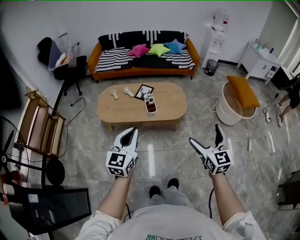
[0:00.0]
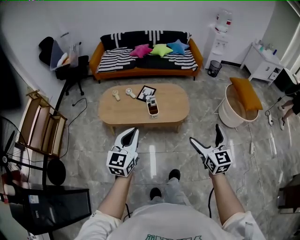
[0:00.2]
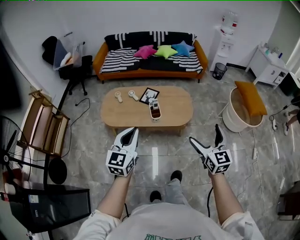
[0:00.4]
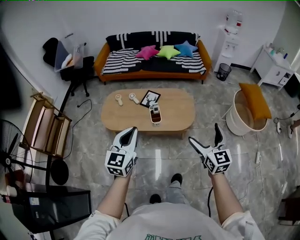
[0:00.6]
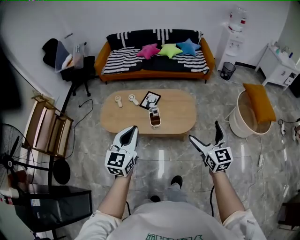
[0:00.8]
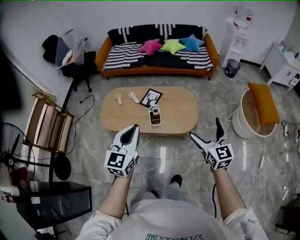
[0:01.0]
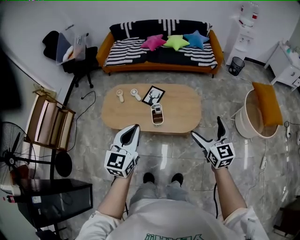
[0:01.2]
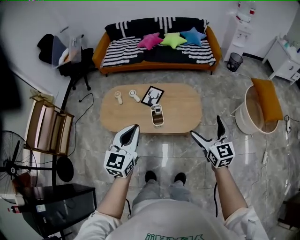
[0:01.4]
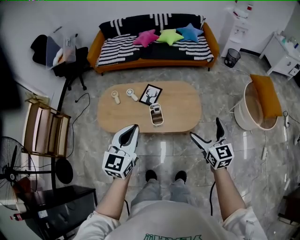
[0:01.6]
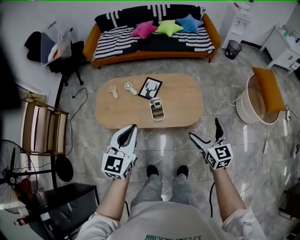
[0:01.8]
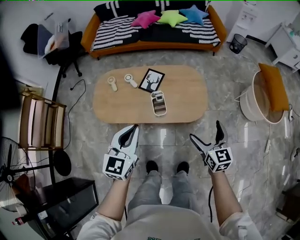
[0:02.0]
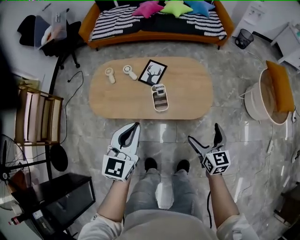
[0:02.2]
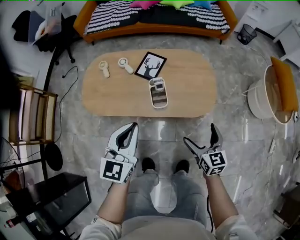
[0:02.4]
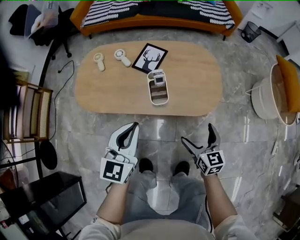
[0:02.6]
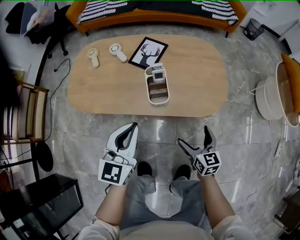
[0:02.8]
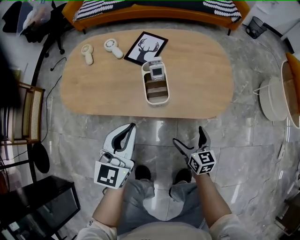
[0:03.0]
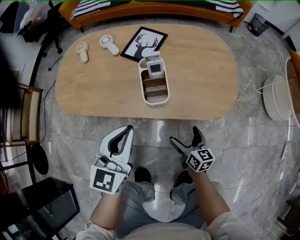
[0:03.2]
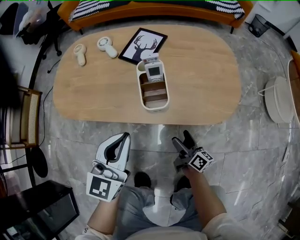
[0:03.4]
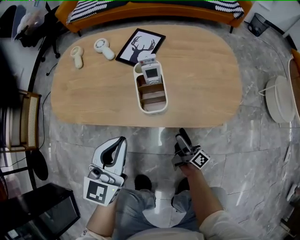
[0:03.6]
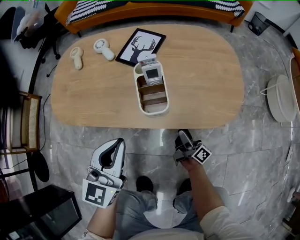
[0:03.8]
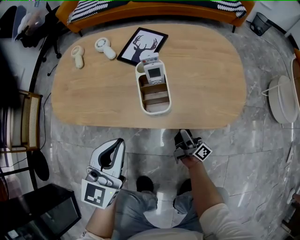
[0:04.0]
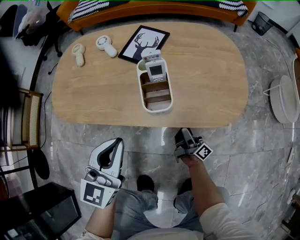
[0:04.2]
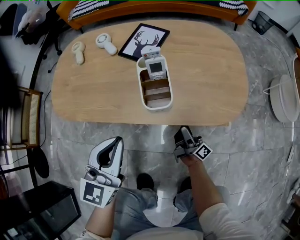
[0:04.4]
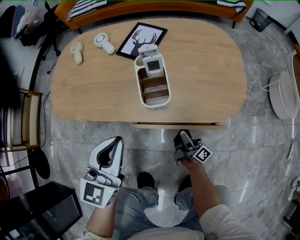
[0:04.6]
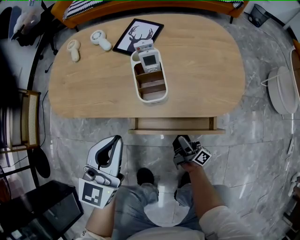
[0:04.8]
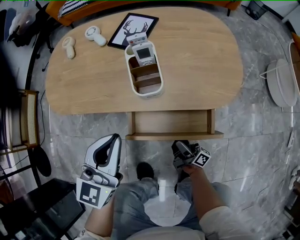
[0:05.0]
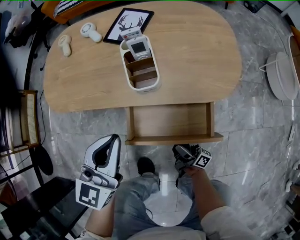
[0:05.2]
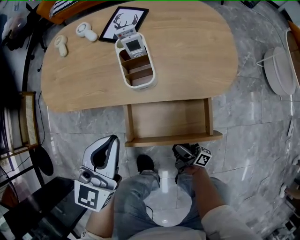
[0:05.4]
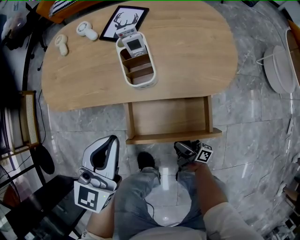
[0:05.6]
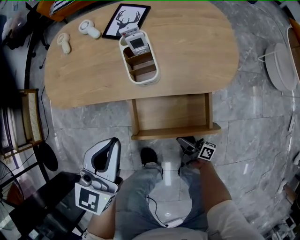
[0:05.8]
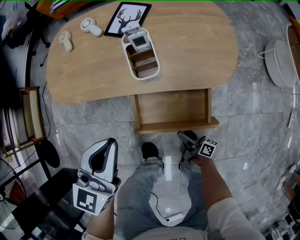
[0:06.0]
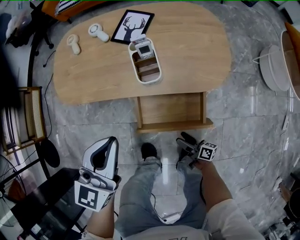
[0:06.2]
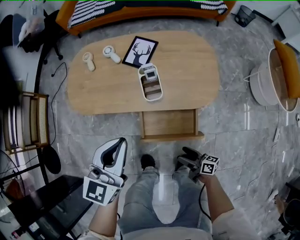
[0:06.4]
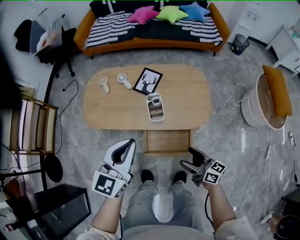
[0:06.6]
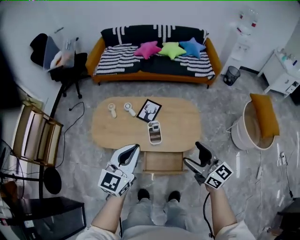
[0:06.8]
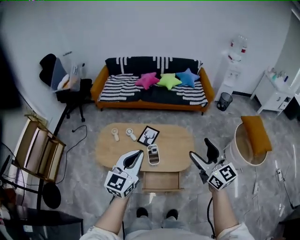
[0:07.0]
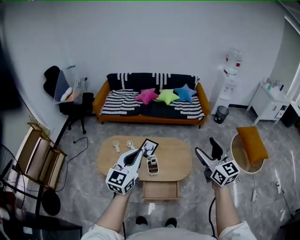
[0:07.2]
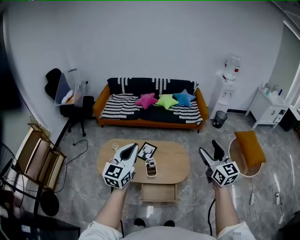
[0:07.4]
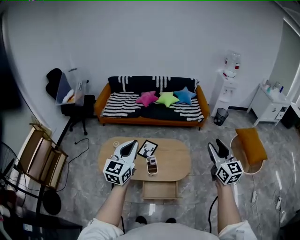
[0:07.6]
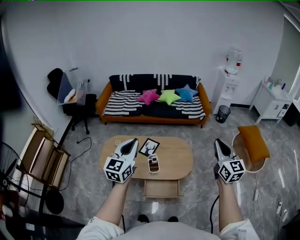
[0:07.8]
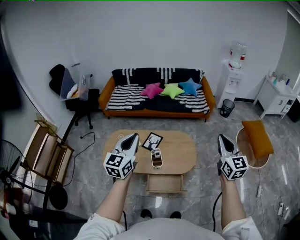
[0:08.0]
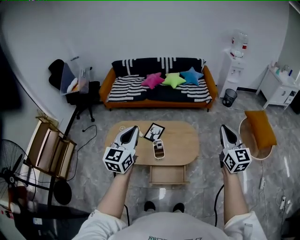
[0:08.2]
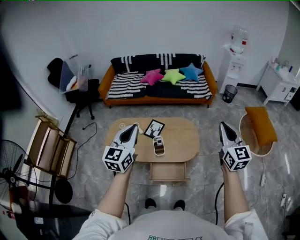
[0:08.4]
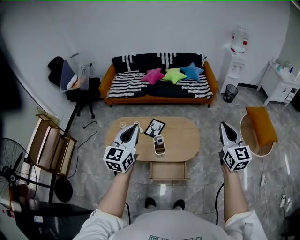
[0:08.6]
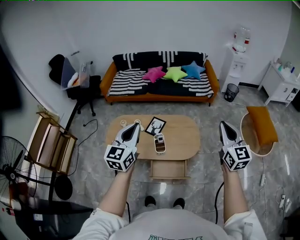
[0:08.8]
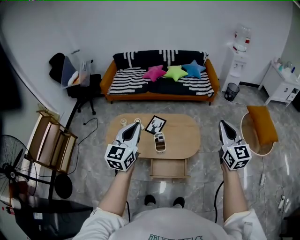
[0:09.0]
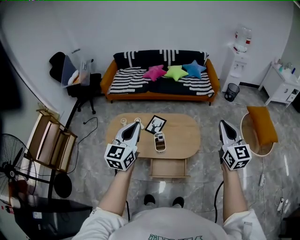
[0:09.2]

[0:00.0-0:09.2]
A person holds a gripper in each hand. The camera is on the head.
0:00.0 to 0:01.6: Both grippers move forward, approximately 25 cm.
0:01.6 to 0:03.0: The two grippers go some 50 cm downward. The right gripper rotates roughly 20 degrees.
0:03.0 to 0:04.6: The right gripper shifts some 10 cm downward, and tilts its fingers roughly 40 degrees upward; the left gripper moves approximately 5 cm.
0:04.6 to 0:06.2: The left gripper travels upward by roughly 10 cm; the right gripper shifts roughly 20 cm backward, and rotates roughly 40 degrees.
0:06.2 to 0:07.6: The left gripper is displaced upward by roughly 50 cm. Meanwhile the right gripper heads upward, covering some 80 cm, and rotates around the line of its fingers by about 80 degrees, counterclockwise from behind.
0:07.6 to 0:09.2: There are only small adjustments of the grippers.

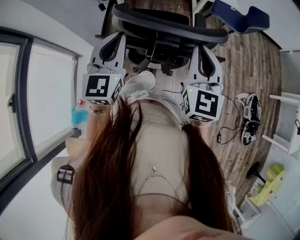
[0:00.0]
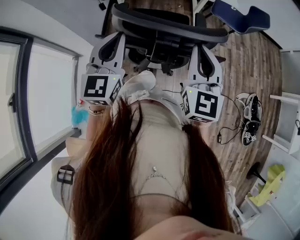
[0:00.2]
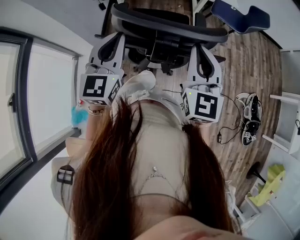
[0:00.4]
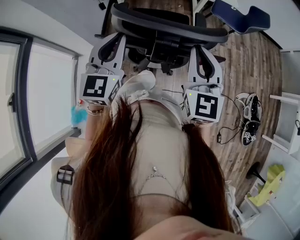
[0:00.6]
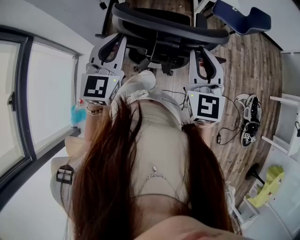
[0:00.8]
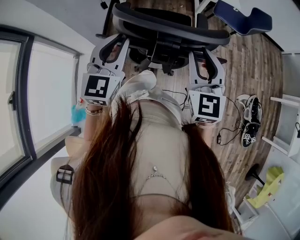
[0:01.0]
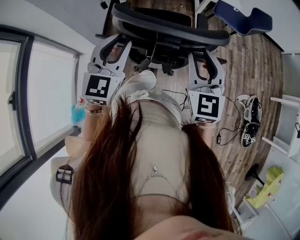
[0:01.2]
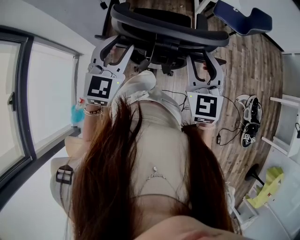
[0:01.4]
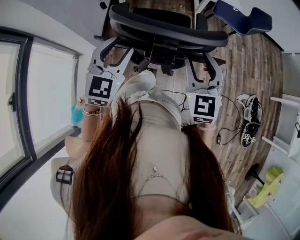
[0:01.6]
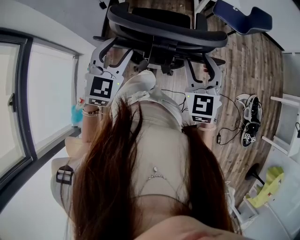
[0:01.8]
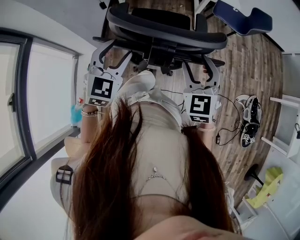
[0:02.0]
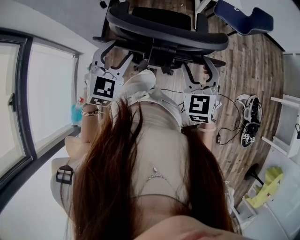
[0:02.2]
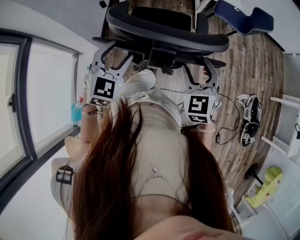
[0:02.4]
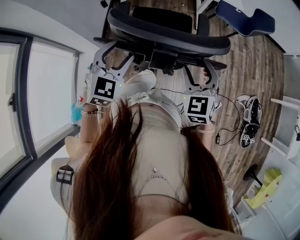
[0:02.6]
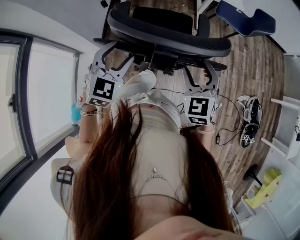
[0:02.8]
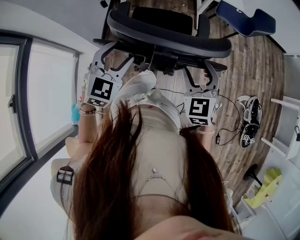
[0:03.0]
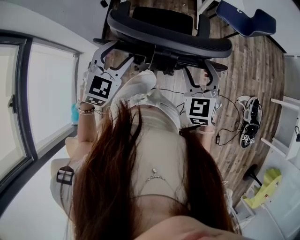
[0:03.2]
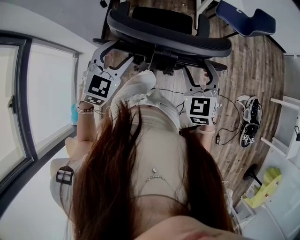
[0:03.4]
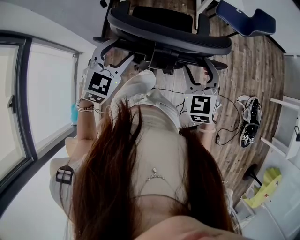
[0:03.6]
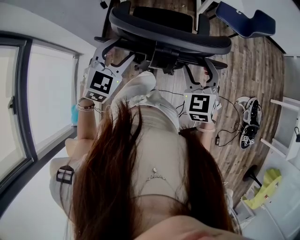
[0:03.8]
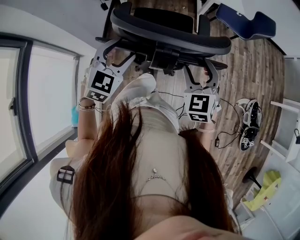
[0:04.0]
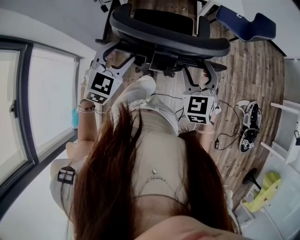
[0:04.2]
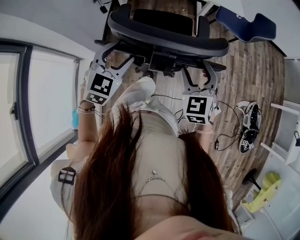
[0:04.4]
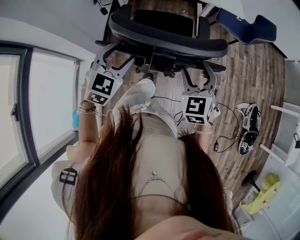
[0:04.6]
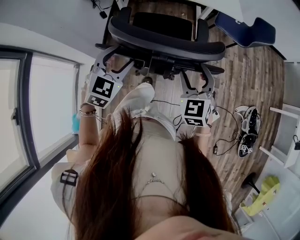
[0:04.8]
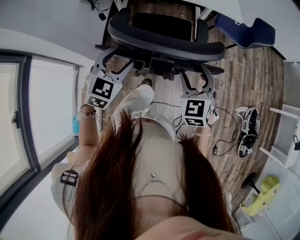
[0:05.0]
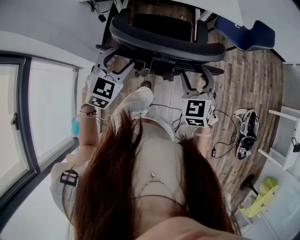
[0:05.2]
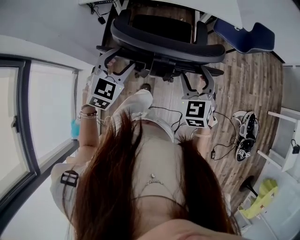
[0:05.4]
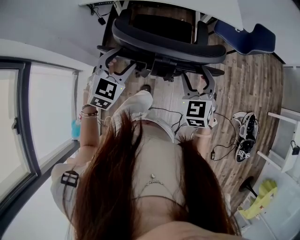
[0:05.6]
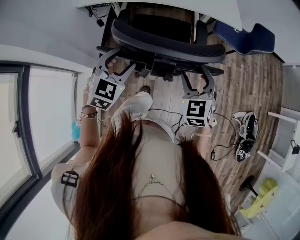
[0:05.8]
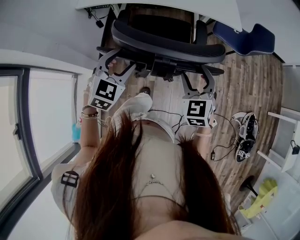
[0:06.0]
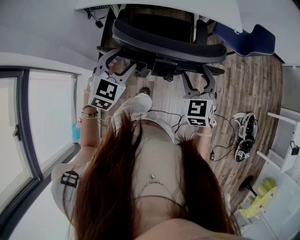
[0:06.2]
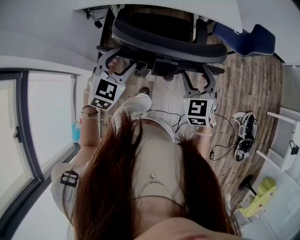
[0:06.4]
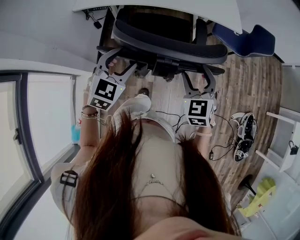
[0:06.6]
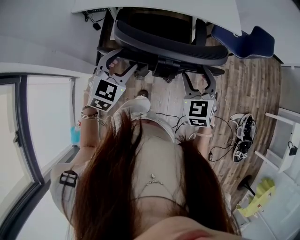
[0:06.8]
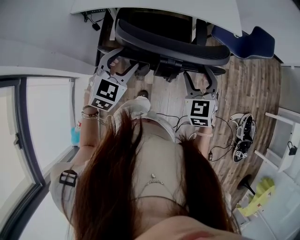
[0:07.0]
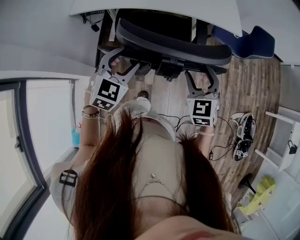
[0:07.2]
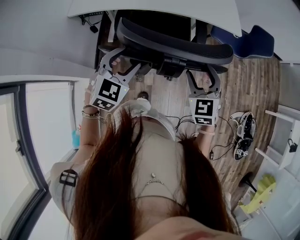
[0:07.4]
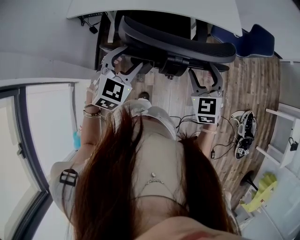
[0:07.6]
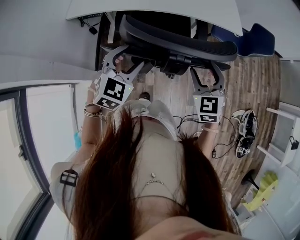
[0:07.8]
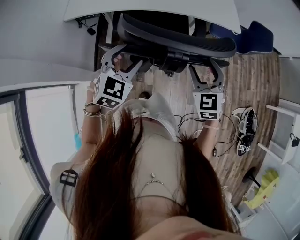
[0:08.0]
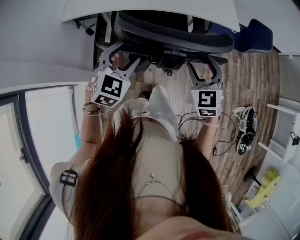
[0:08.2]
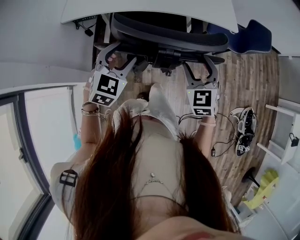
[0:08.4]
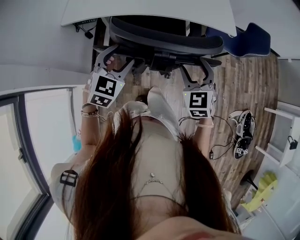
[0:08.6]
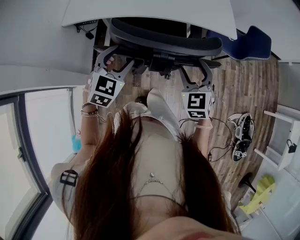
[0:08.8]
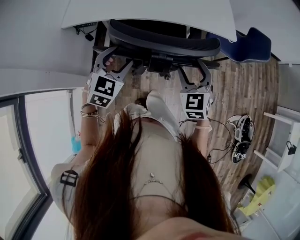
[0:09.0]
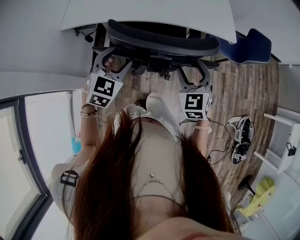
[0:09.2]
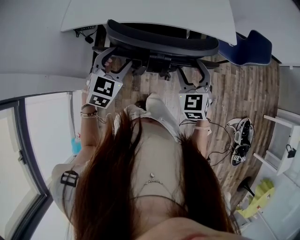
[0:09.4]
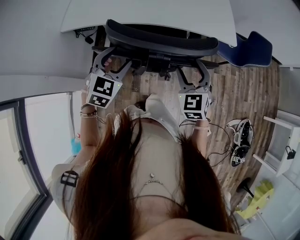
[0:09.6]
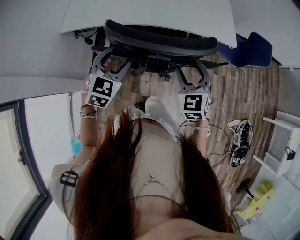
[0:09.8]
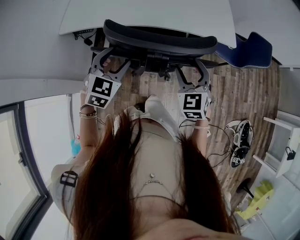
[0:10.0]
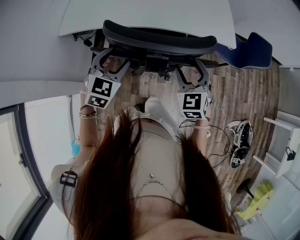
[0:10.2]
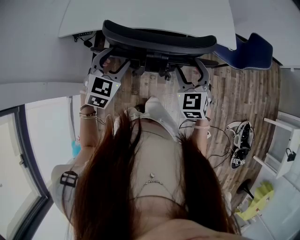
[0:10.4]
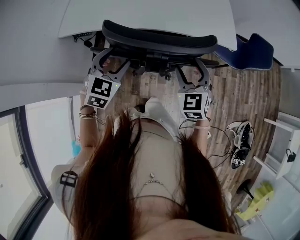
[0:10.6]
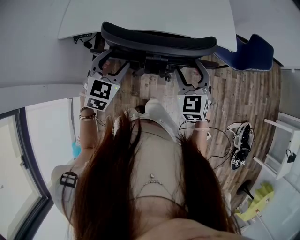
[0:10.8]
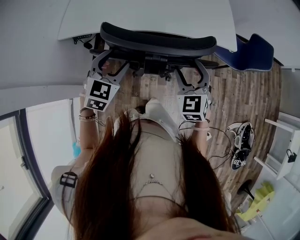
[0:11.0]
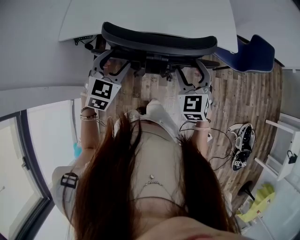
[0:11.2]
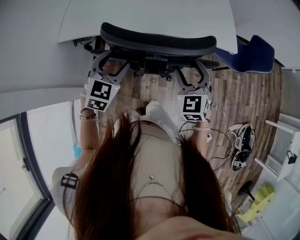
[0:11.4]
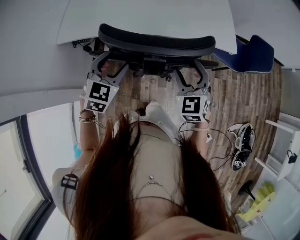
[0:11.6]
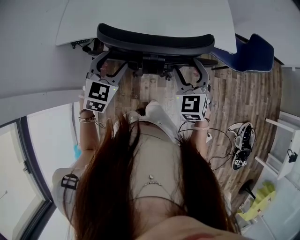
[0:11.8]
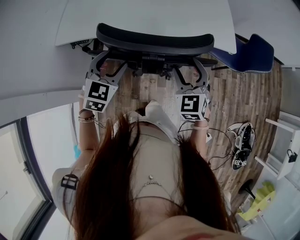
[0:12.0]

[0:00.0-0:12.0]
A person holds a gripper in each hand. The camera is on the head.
0:00.0 to 0:01.6: The left gripper opens. The right gripper moves downward, roughly 5 cm, and opens its fingers.
0:01.6 to 0:03.0: The right gripper heads downward, covering roughly 5 cm.
0:03.0 to 0:04.4: The grippers stay close to where they were, moving slightly.
0:04.4 to 0:06.0: The grippers both shift forward by some 15 cm.
0:06.0 to 0:07.6: Both grippers travel together forward, some 10 cm.
0:07.6 to 0:09.0: The grippers both shift forward by some 5 cm.
0:09.0 to 0:10.4: Both grippers move forward, approximately 5 cm.
0:10.4 to 0:12.0: The grippers move only a little.

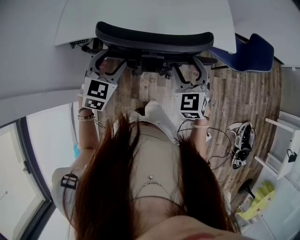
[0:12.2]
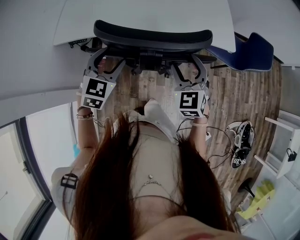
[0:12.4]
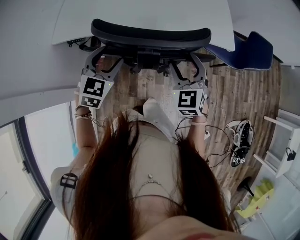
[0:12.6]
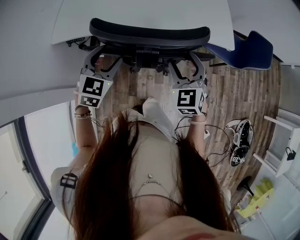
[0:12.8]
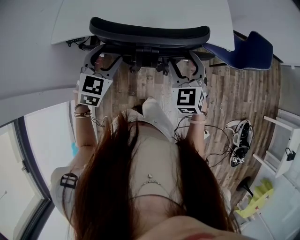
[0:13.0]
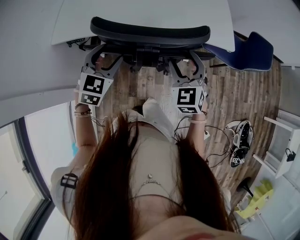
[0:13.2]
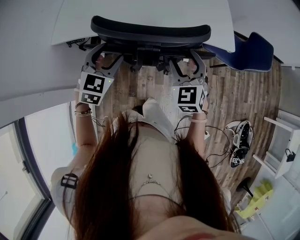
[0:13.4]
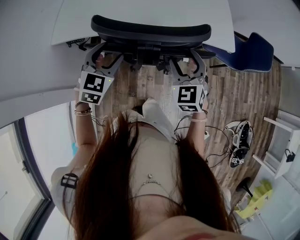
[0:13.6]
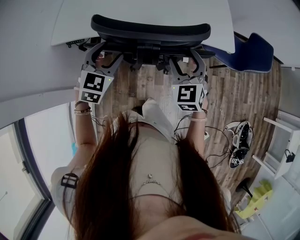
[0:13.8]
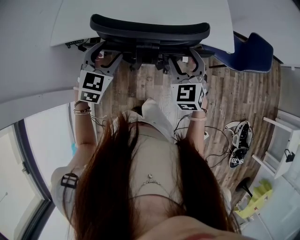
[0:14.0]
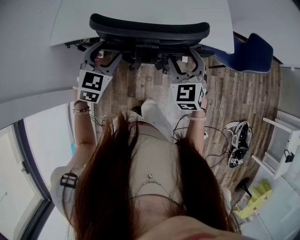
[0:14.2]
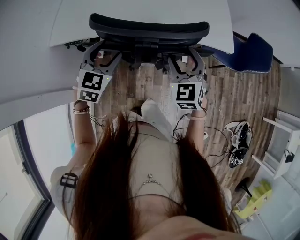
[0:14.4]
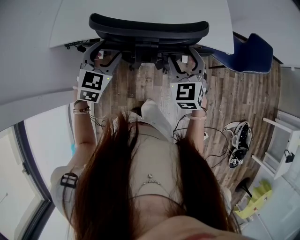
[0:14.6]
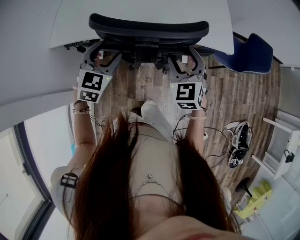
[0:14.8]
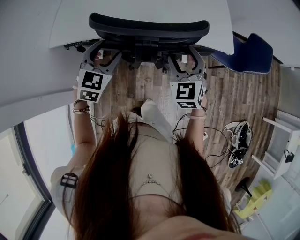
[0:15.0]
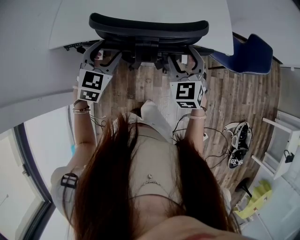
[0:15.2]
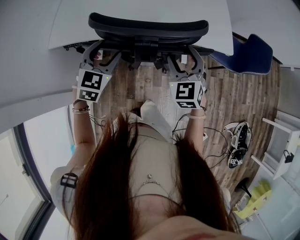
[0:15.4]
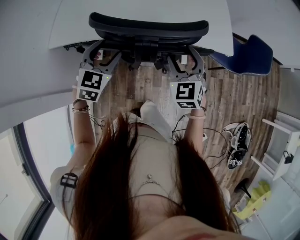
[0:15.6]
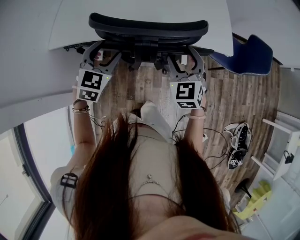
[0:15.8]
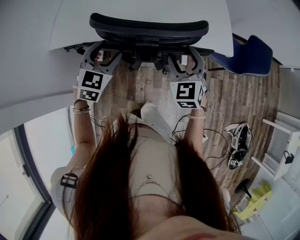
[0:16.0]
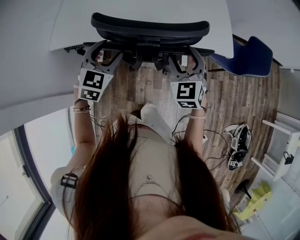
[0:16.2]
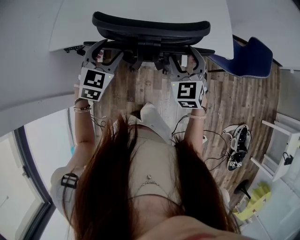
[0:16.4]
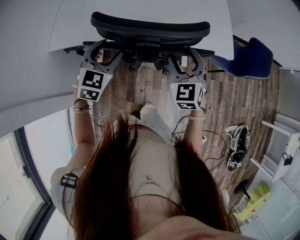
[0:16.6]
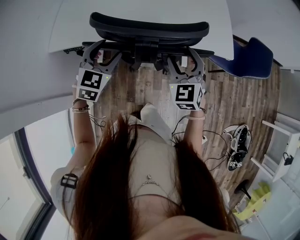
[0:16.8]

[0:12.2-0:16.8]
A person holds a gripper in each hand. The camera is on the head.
0:12.2 to 0:13.8: Both grippers travel together forward, roughly 5 cm.
0:13.8 to 0:15.2: Both grippers stay put.
0:15.2 to 0:16.8: Neither gripper changes place.
